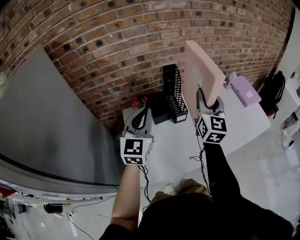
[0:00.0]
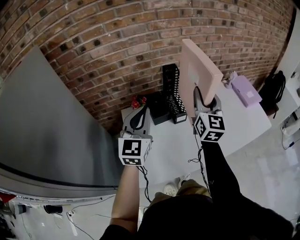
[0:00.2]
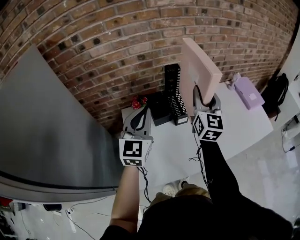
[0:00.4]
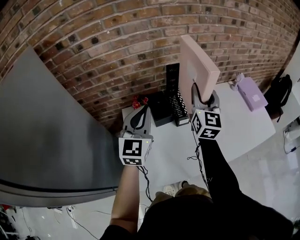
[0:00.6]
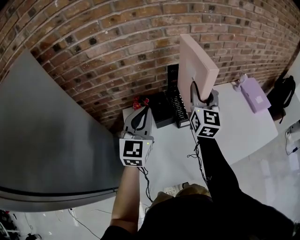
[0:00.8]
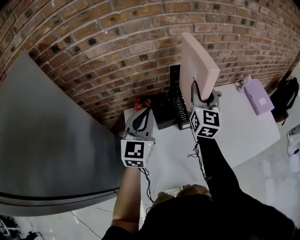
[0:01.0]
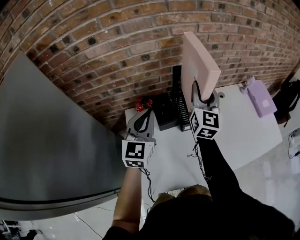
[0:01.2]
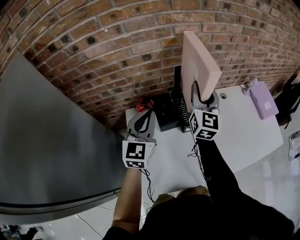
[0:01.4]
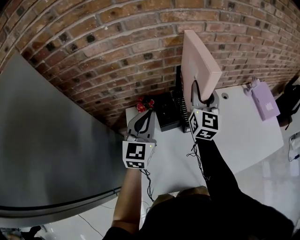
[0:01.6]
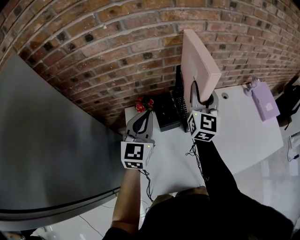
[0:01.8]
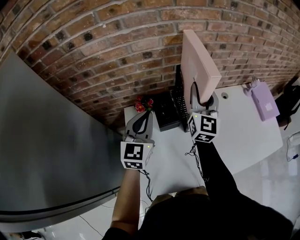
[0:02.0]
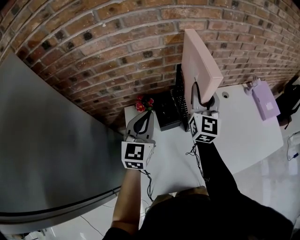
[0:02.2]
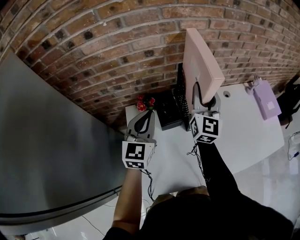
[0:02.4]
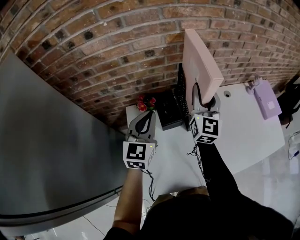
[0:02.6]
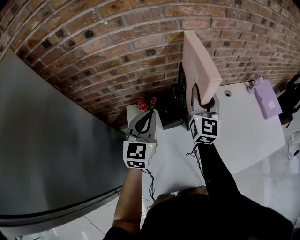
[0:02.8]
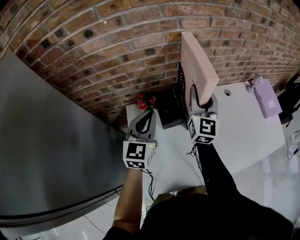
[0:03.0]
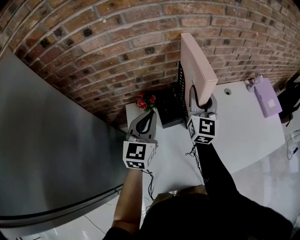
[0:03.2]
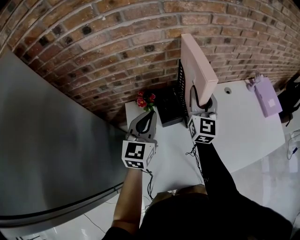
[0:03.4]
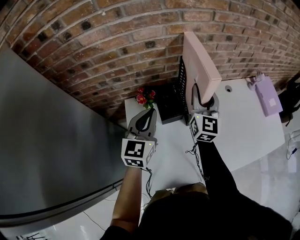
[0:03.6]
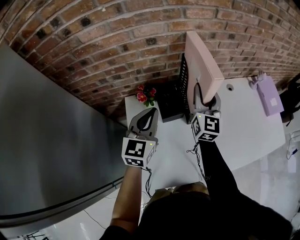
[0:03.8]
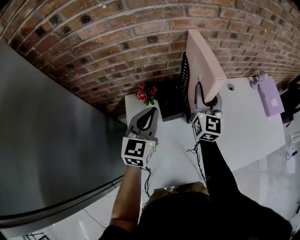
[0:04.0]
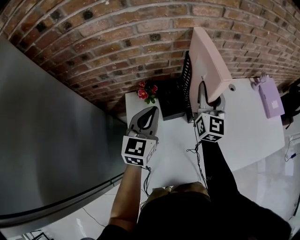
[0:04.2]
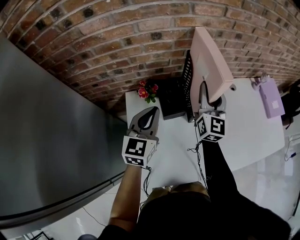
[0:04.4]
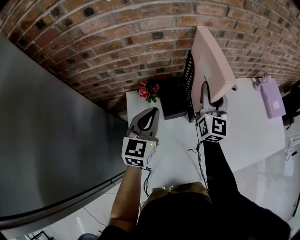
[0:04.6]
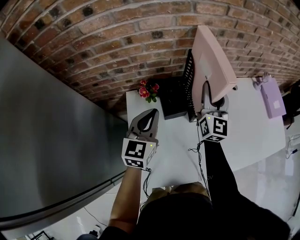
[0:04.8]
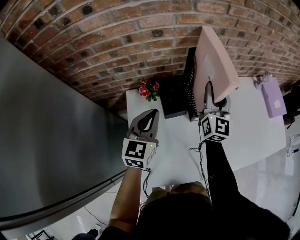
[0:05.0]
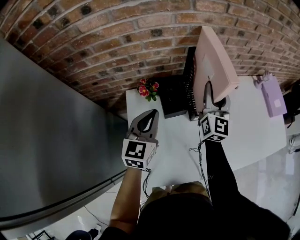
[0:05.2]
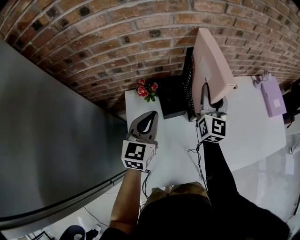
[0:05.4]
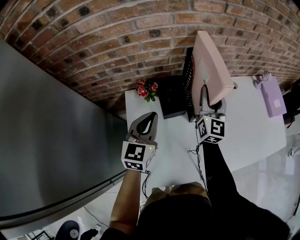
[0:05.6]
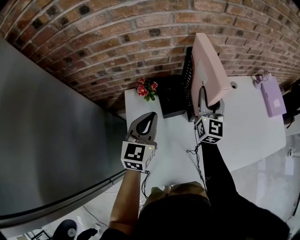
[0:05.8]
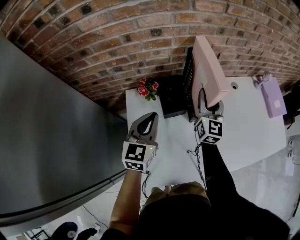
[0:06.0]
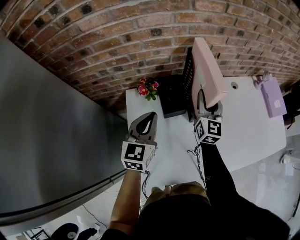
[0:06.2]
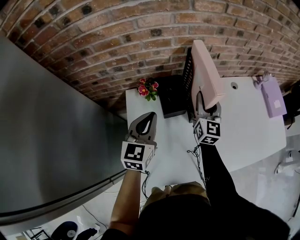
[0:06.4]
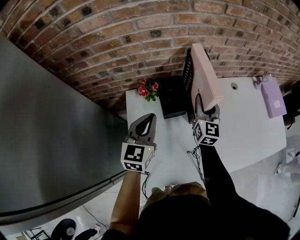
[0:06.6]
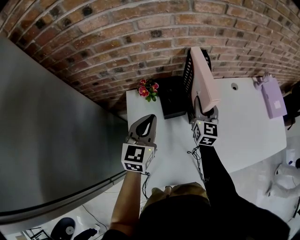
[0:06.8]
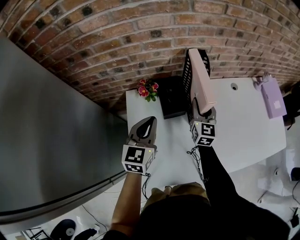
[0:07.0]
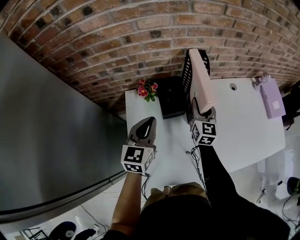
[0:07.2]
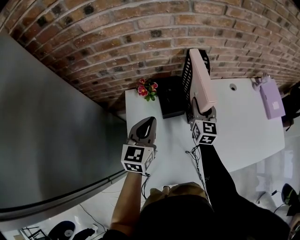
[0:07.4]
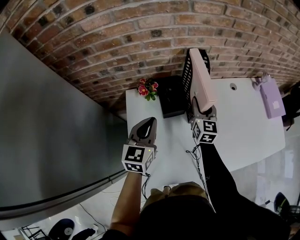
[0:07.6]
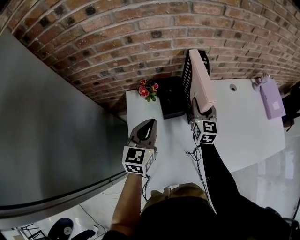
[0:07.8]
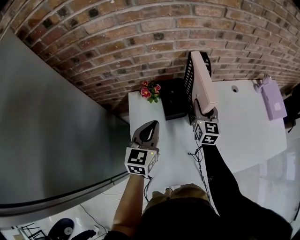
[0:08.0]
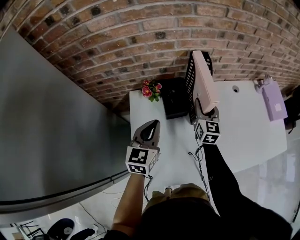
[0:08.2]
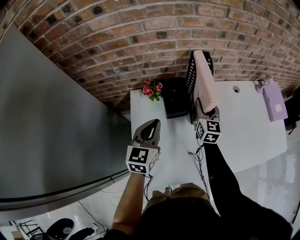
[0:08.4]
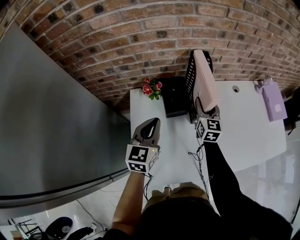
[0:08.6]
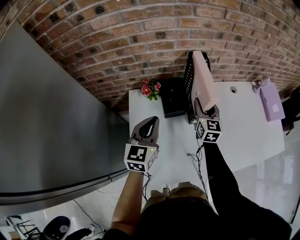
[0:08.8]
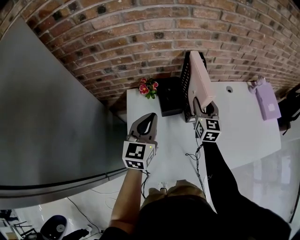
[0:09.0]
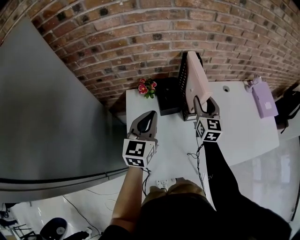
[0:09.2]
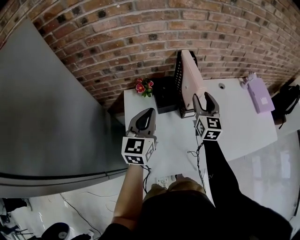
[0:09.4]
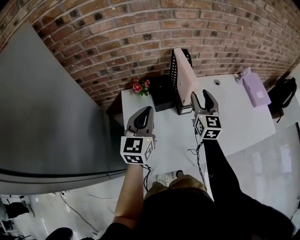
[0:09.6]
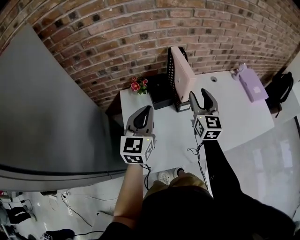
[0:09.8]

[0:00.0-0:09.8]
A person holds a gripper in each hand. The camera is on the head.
0:00.0 to 0:01.4: The left gripper is displaced forward and downward by some 15 cm, while the right gripper is displaced forward and to the left by approximately 20 cm.
0:01.4 to 0:02.8: The grippers move only a little.
0:02.8 to 0:04.2: The grippers move only a little.
0:04.2 to 0:05.6: The grippers stay close to where they were, moving slightly.
0:05.6 to 0:07.0: The right gripper shifts some 10 cm downward.
0:07.0 to 0:08.4: There are only small adjustments of the grippers.
0:08.4 to 0:09.8: The right gripper moves upward and backward, some 20 cm. The left gripper heads upward and backward, covering roughly 10 cm.

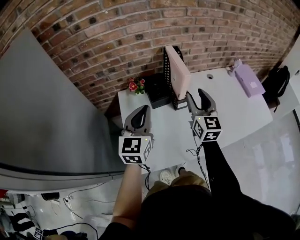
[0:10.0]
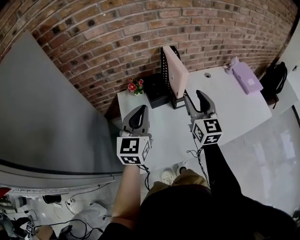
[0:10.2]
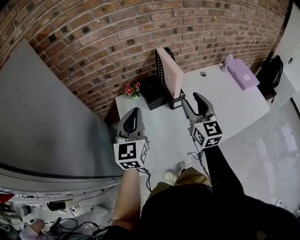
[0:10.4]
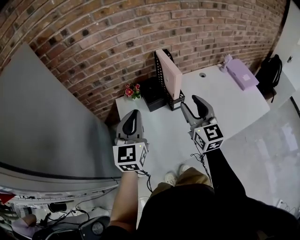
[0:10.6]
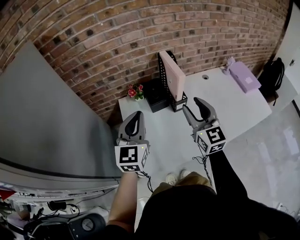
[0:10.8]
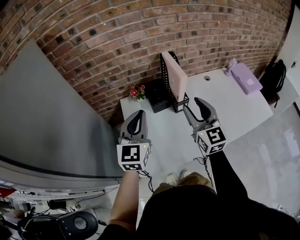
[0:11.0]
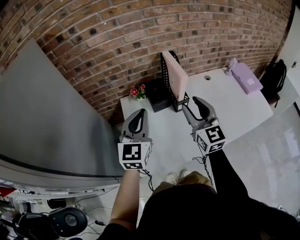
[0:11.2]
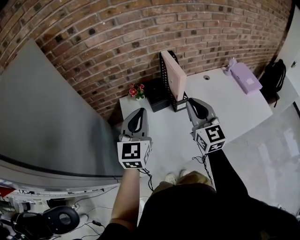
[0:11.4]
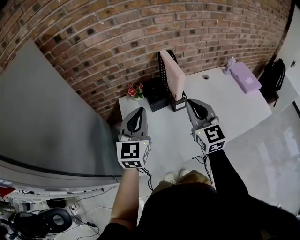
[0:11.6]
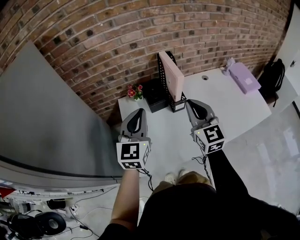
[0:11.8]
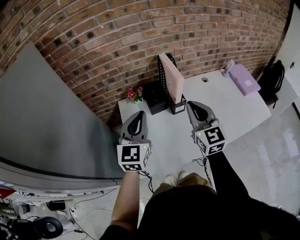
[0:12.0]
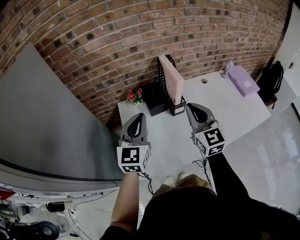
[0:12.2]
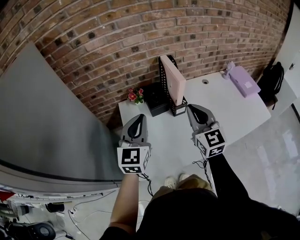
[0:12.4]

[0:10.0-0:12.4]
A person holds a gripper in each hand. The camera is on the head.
0:10.0 to 0:11.2: The right gripper moves backward, approximately 10 cm.
0:11.2 to 0:12.4: The right gripper closes up.

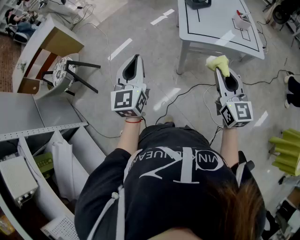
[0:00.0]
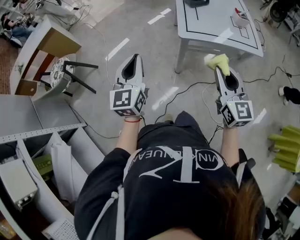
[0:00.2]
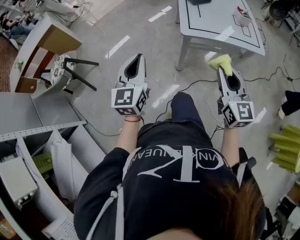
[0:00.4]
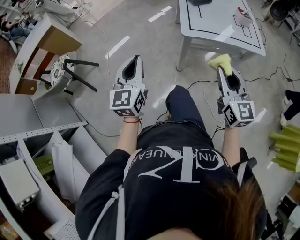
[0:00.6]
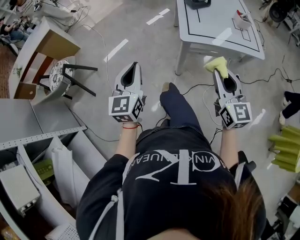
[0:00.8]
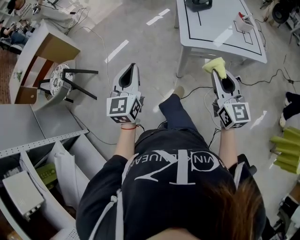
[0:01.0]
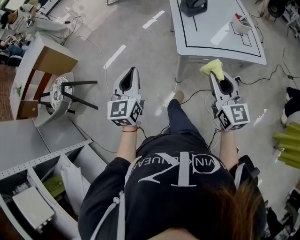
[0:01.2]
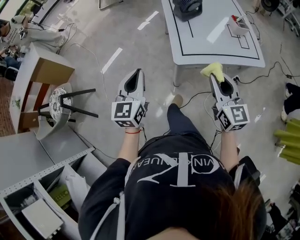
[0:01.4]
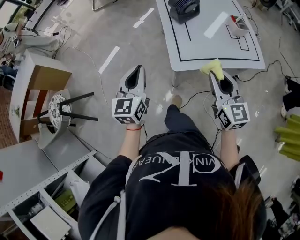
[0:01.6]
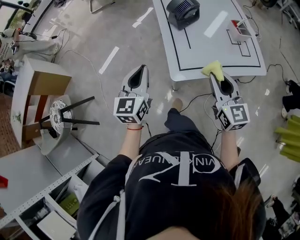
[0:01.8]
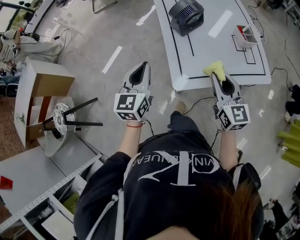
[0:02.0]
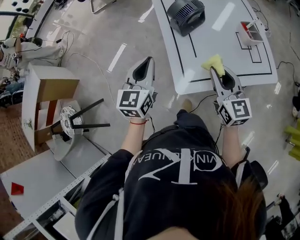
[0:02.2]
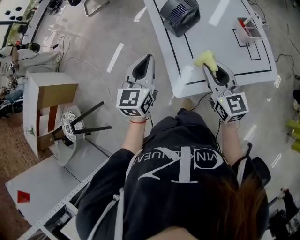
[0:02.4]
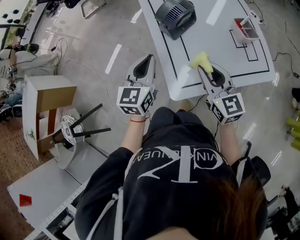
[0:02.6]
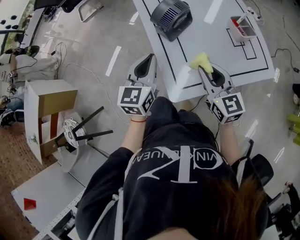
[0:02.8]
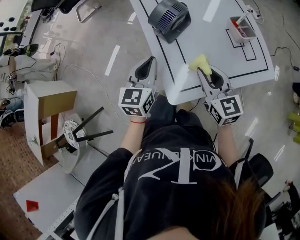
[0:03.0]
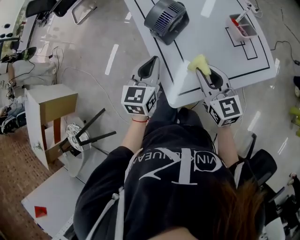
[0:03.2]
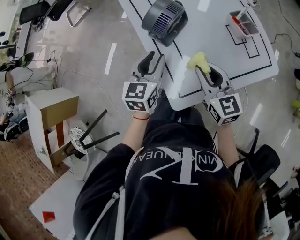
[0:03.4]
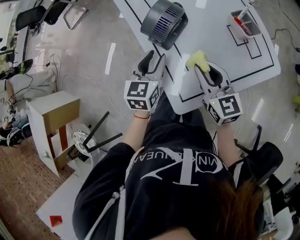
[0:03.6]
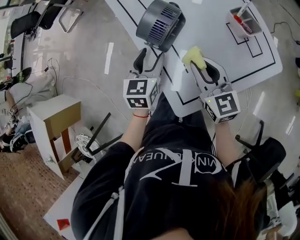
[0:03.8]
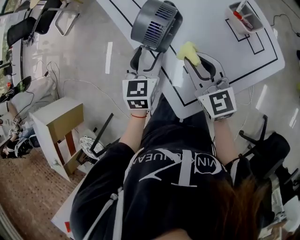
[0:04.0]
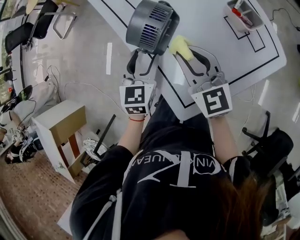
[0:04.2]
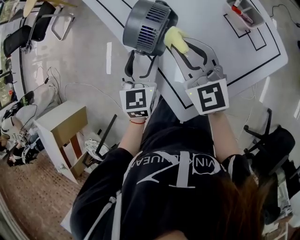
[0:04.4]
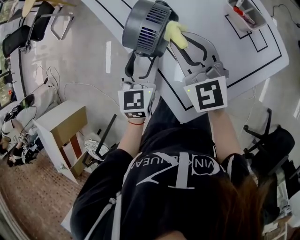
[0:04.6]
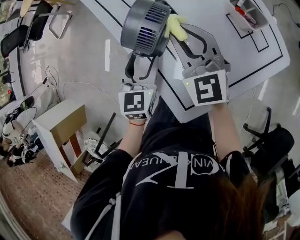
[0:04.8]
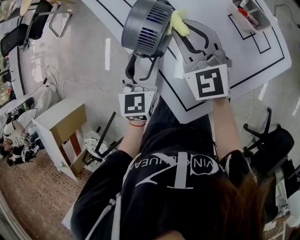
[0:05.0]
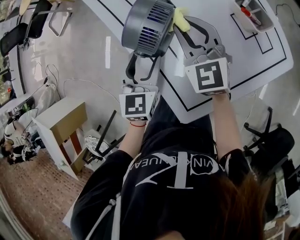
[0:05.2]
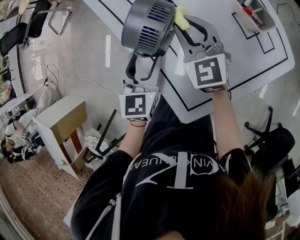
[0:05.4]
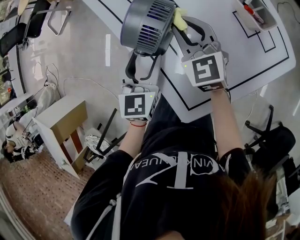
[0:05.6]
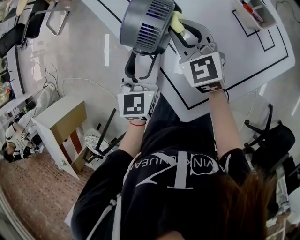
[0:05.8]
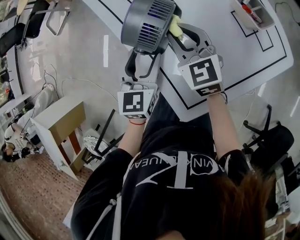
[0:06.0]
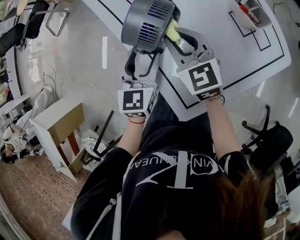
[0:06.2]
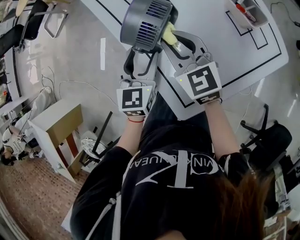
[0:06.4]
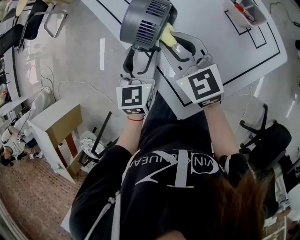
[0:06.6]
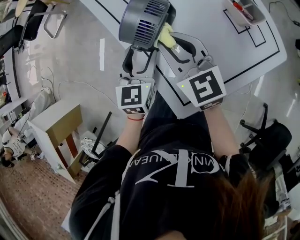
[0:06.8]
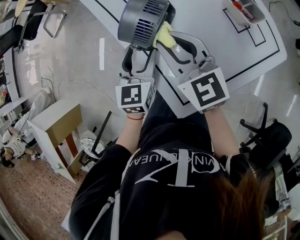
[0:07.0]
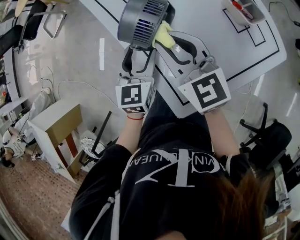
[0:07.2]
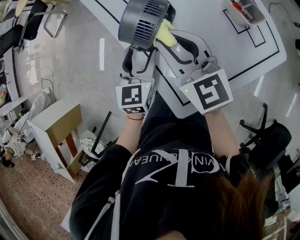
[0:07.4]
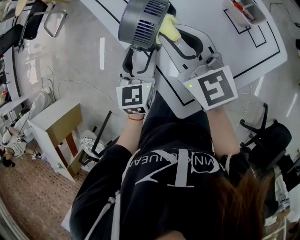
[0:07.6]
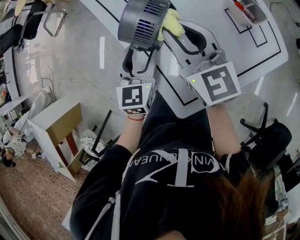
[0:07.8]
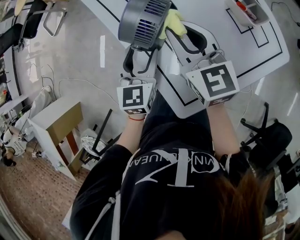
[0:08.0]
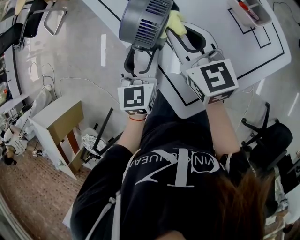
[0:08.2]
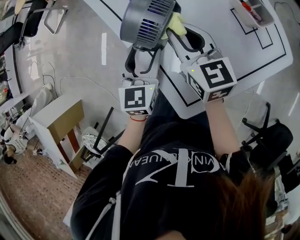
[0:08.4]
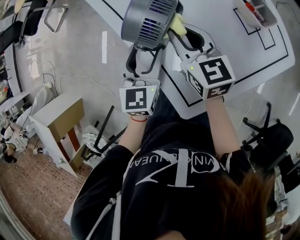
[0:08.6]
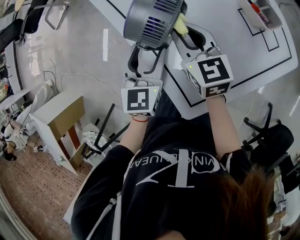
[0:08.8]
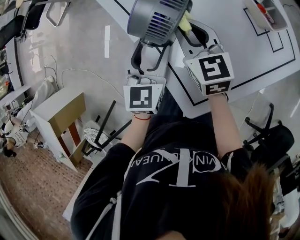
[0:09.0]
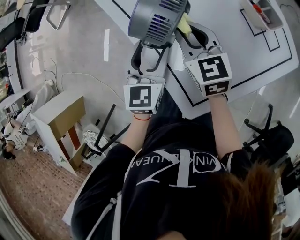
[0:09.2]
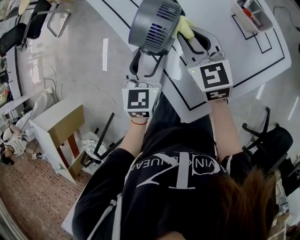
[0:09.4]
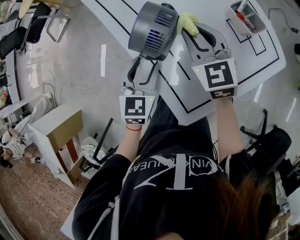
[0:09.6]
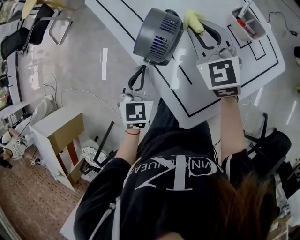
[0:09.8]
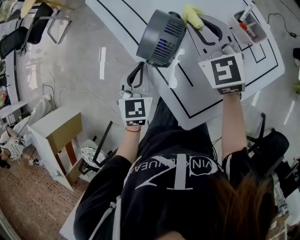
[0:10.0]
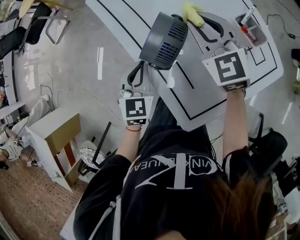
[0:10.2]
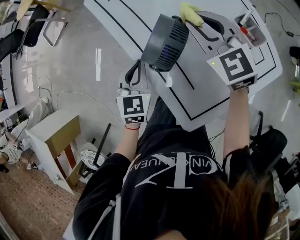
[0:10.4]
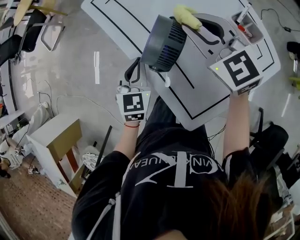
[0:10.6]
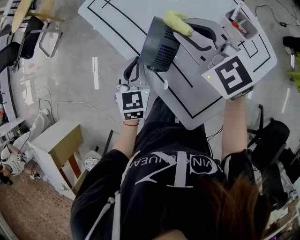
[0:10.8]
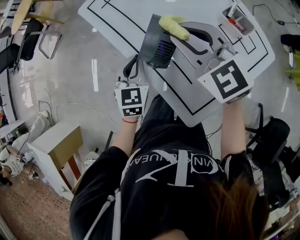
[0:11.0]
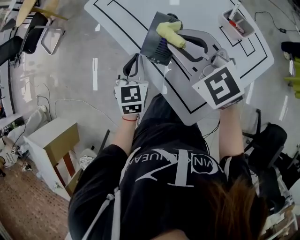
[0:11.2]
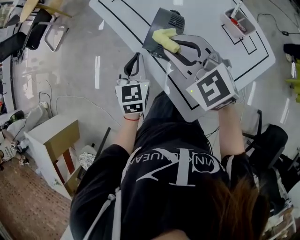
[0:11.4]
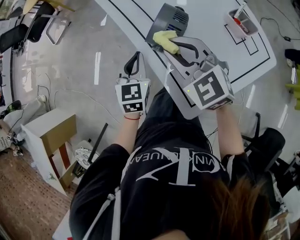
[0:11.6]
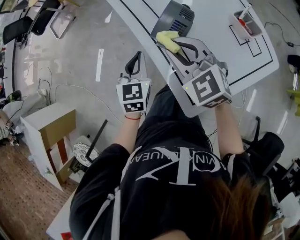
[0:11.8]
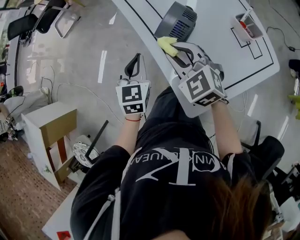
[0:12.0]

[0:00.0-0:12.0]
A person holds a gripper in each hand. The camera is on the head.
0:00.0 to 0:01.6: Both grippers travel together forward, approximately 20 cm.
0:01.6 to 0:03.0: The left gripper travels forward and to the right by about 25 cm; the right gripper shifts about 20 cm forward.
0:03.0 to 0:04.4: The right gripper moves forward, some 15 cm. Meanwhile the left gripper travels forward and downward by roughly 15 cm, and opens.
0:04.4 to 0:06.0: The right gripper moves downward, roughly 5 cm.
0:06.0 to 0:07.6: The right gripper goes some 10 cm upward.
0:07.6 to 0:09.0: The right gripper goes approximately 10 cm downward.
0:09.0 to 0:10.4: The right gripper travels upward and forward by about 15 cm, and changes its angle by approximately 30 degrees, while the left gripper heads to the left, covering about 5 cm, and closes its fingers.
0:10.4 to 0:12.0: The left gripper moves to the left, approximately 5 cm. The right gripper is displaced to the left and backward by approximately 20 cm.
